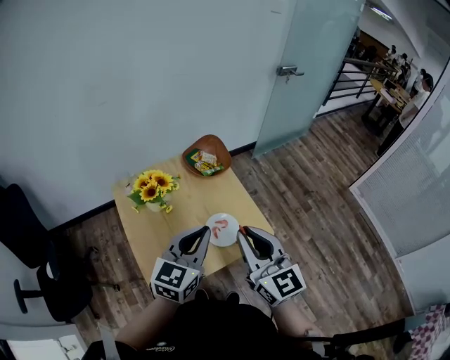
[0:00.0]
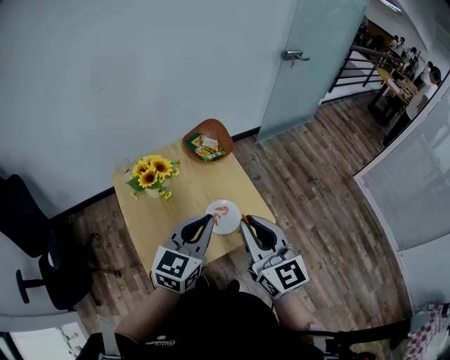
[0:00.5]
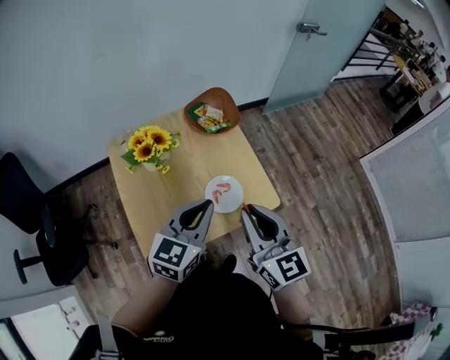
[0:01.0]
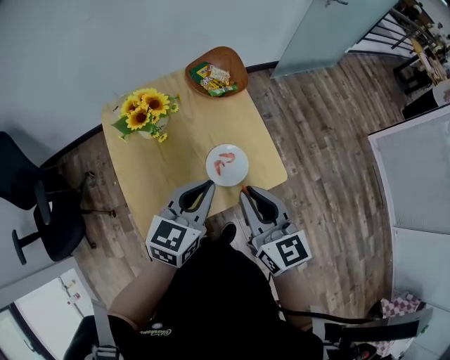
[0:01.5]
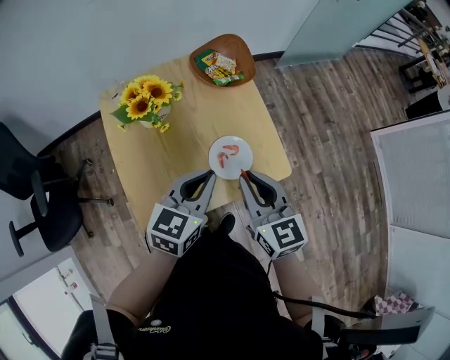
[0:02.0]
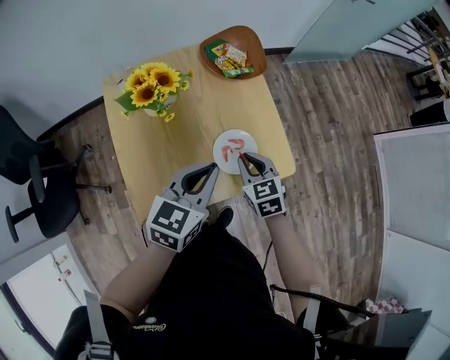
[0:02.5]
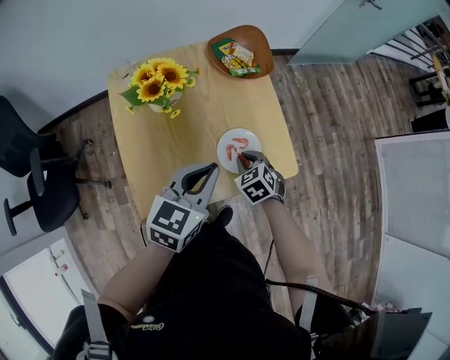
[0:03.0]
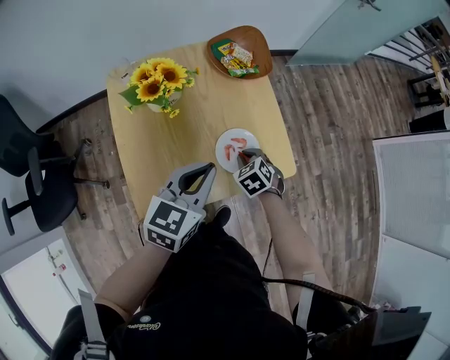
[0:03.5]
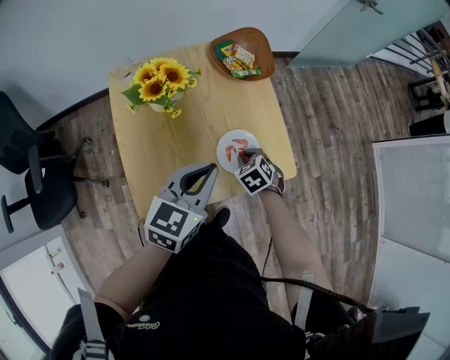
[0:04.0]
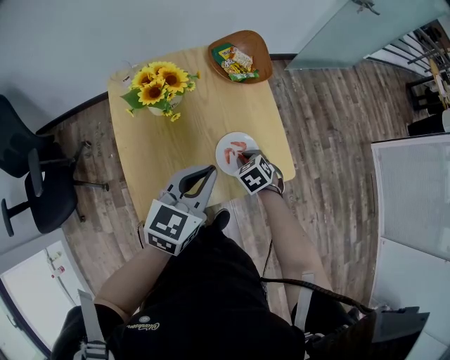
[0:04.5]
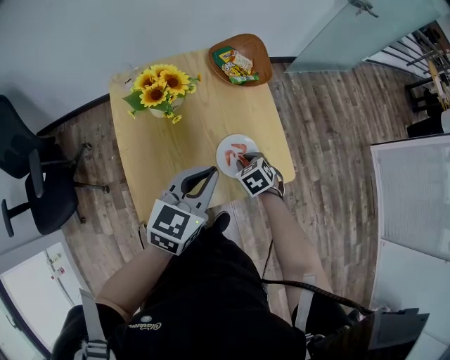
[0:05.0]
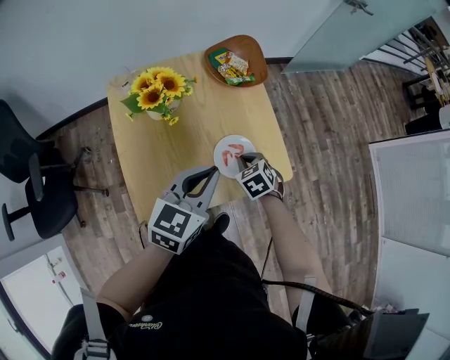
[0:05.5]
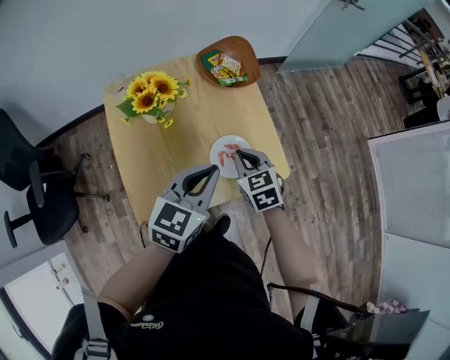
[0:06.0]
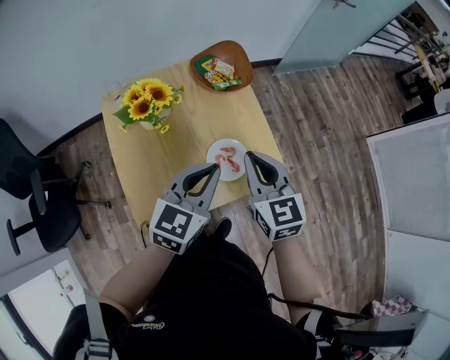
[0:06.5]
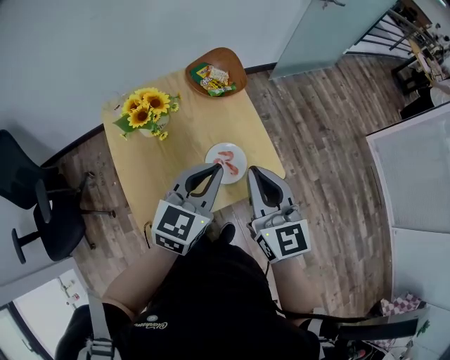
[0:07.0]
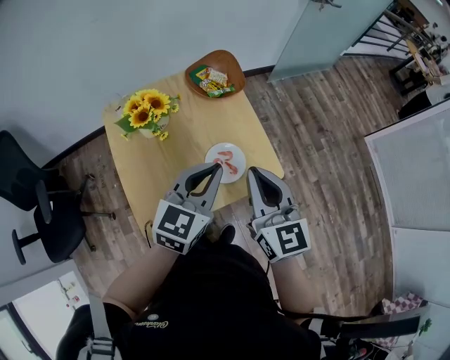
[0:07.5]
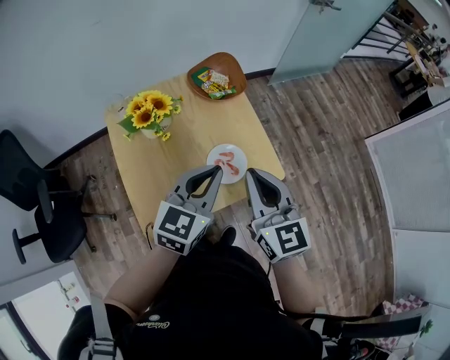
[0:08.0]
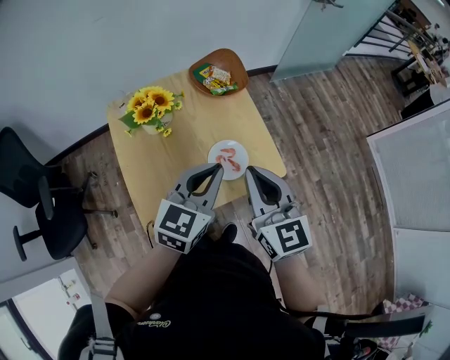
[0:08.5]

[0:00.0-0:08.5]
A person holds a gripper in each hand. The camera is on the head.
0.0 to 2.0 s: Both grippers travel together downward, approximately 15 cm. The right gripper swivels approximately 20 degrees.
2.0 to 4.0 s: The right gripper travels downward by roughly 25 cm, and points its fingers about 50 degrees further downward.
4.0 to 6.5 s: The right gripper goes some 25 cm upward, and tips its fingers upward by some 40 degrees. The left gripper moves some 5 cm.
6.5 to 8.5 s: The right gripper goes some 10 cm backward and upward.

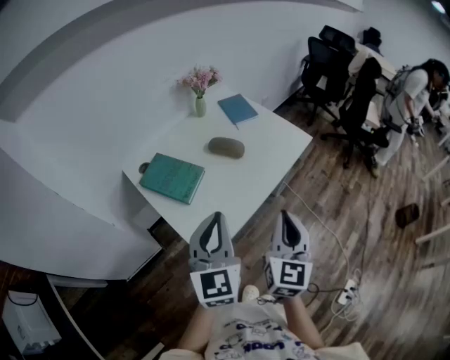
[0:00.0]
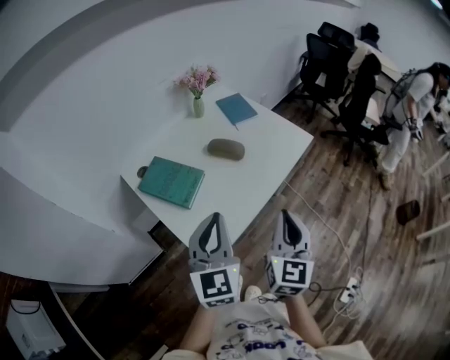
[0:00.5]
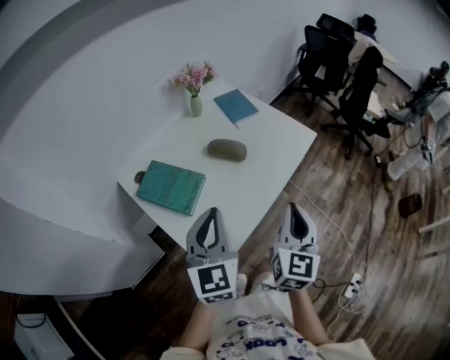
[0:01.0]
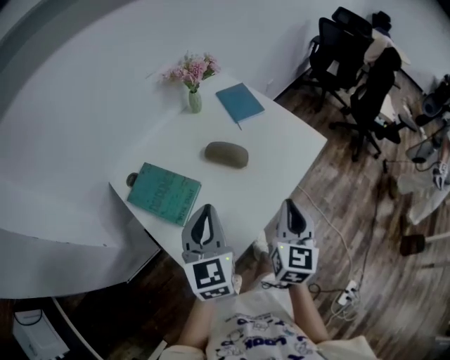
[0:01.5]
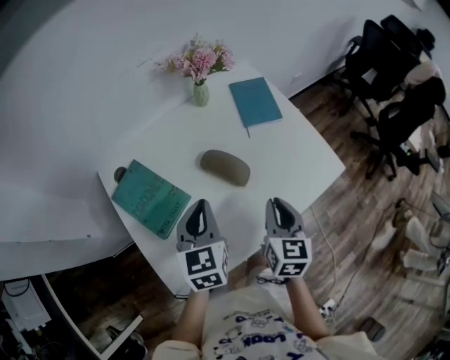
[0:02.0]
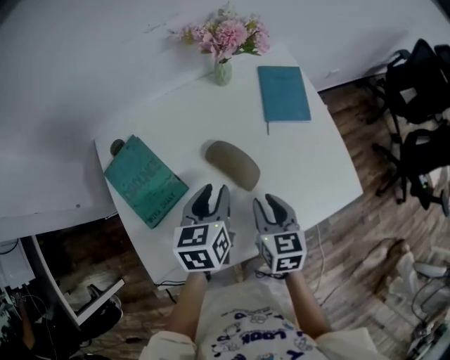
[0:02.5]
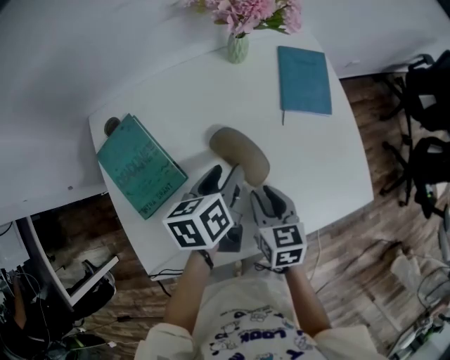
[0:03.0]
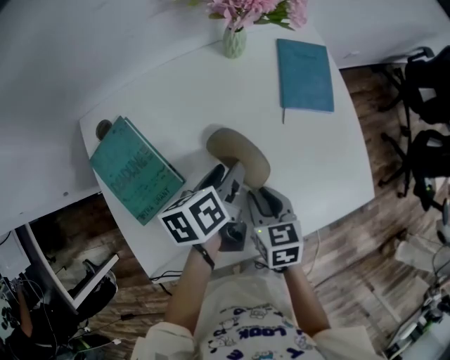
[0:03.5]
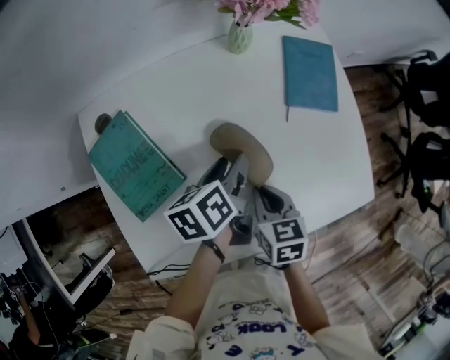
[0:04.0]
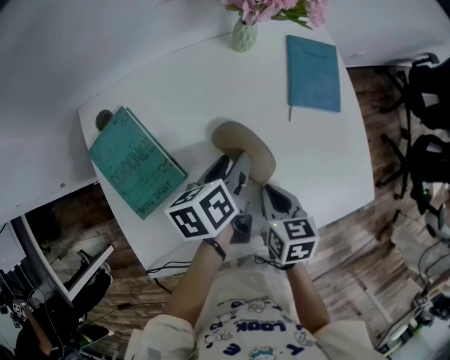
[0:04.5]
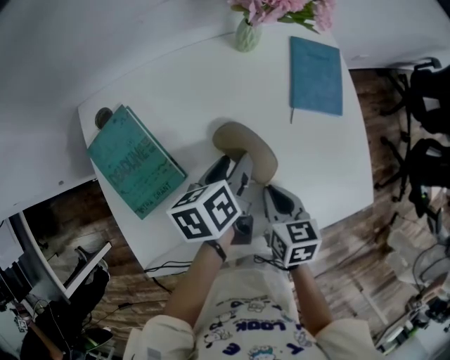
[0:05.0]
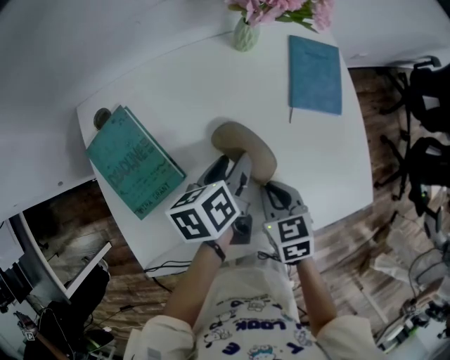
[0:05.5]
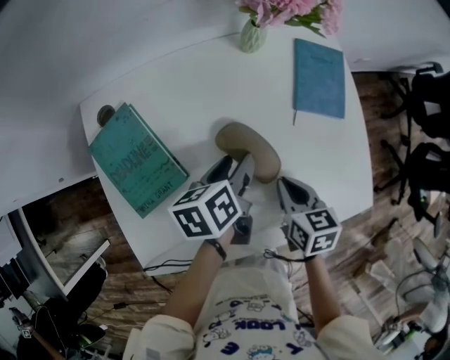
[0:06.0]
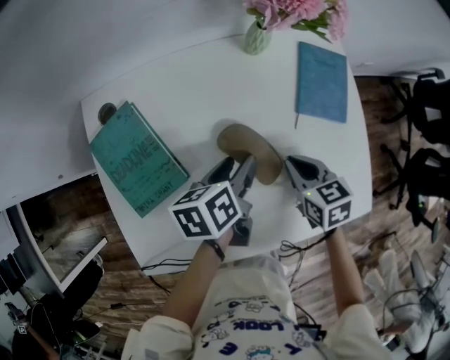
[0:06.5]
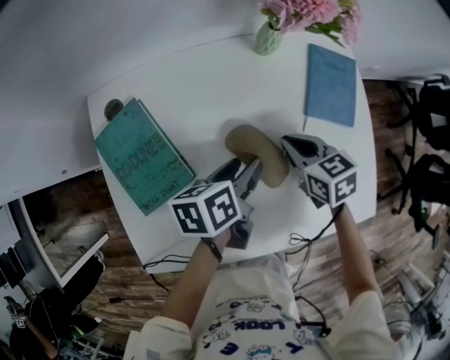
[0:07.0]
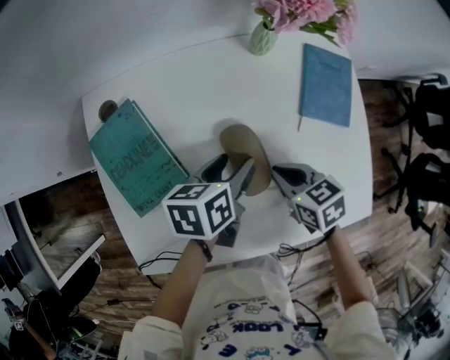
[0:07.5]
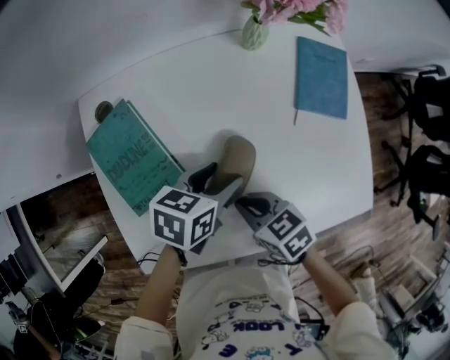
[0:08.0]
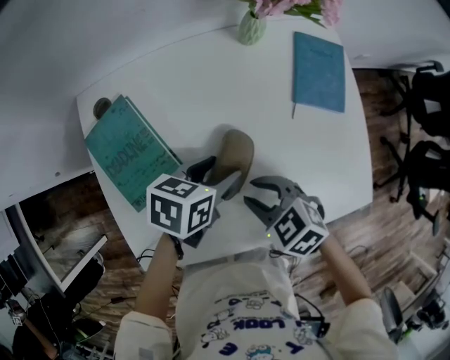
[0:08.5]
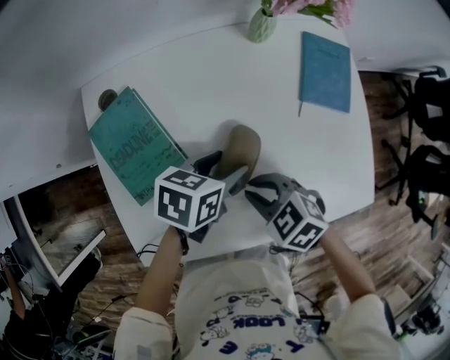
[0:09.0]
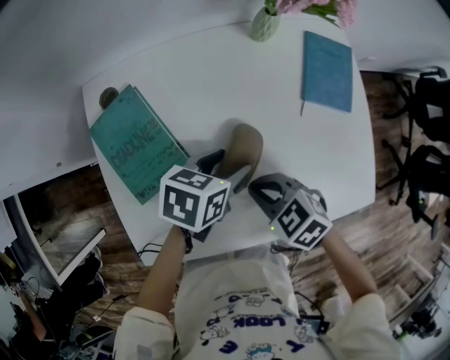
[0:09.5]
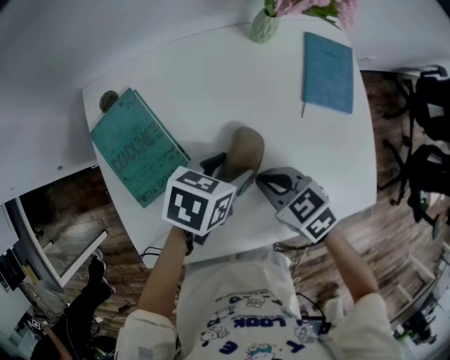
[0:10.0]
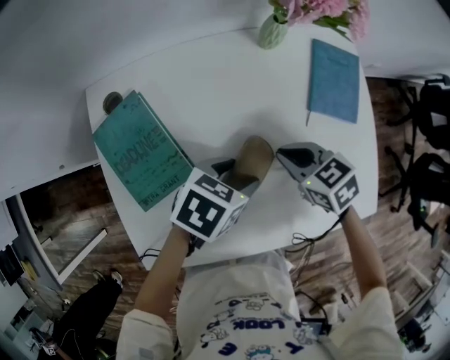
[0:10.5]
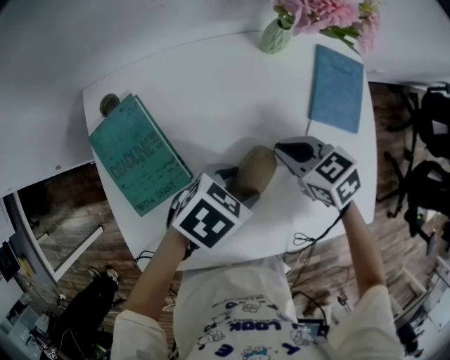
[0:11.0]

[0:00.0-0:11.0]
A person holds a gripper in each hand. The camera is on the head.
0.0 to 2.0 s: The two grippers go about 30 cm forward and downward. The left gripper changes its angle by roughly 30 degrees; the right gripper swivels roughly 30 degrees.
2.0 to 3.5 s: The right gripper shifts roughly 15 cm downward, forward and to the left, and changes its angle by some 40 degrees. Meanwhile the left gripper travels downward, forward and to the right by some 15 cm, rolls counterclockwise, seen from behind, by about 50 degrees, and opens.
3.5 to 5.5 s: The right gripper closes up.
5.5 to 7.5 s: The right gripper heads forward, covering some 5 cm, and turns by approximately 20 degrees.
7.5 to 9.0 s: The left gripper swivels approximately 20 degrees, while the right gripper changes place by approximately 10 cm, and rotates approximately 30 degrees.
9.0 to 11.0 s: The left gripper changes its angle by about 20 degrees; the right gripper ends up approximately 15 cm from where it was.

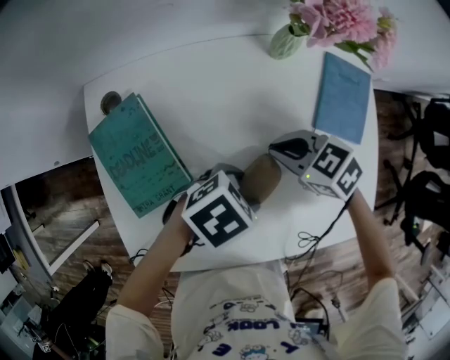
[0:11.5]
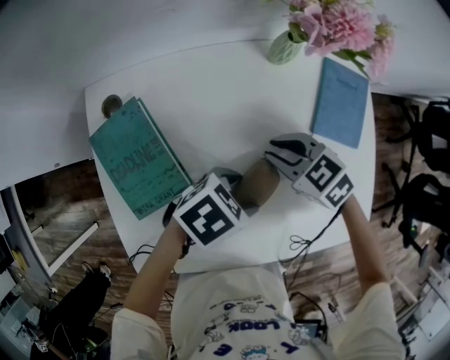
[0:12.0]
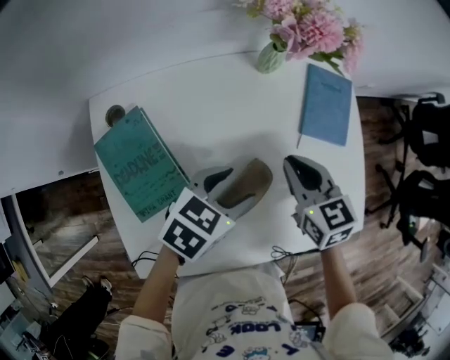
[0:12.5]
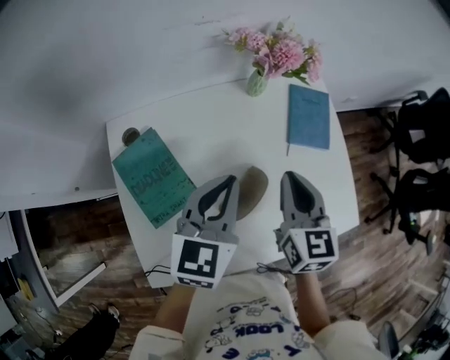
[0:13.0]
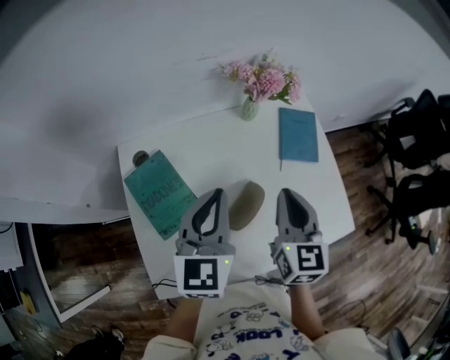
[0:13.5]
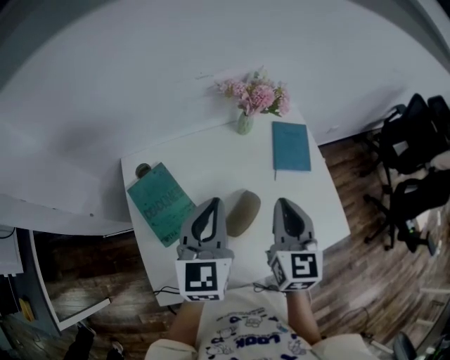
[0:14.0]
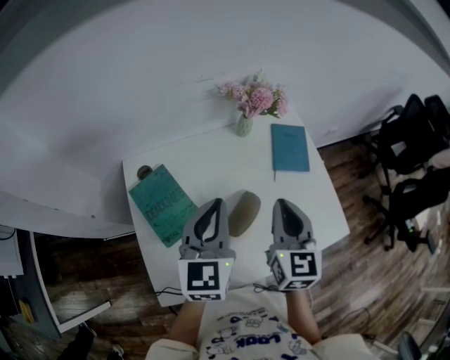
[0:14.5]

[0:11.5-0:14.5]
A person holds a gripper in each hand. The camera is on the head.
11.5 to 13.0 s: Both grippers travel together upward, roughly 15 cm. The right gripper changes its angle by about 70 degrees, while the left gripper angles its fingers upward, by some 30 degrees, and closes up.
13.0 to 14.5 s: The right gripper is displaced upward and backward by approximately 10 cm, while the left gripper heads upward, covering approximately 5 cm.

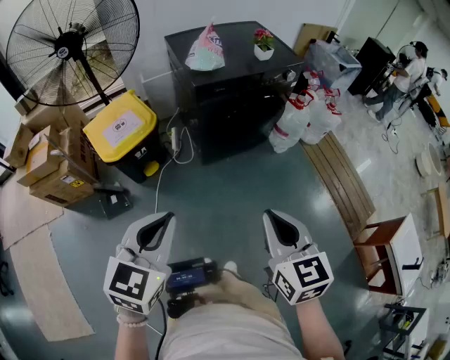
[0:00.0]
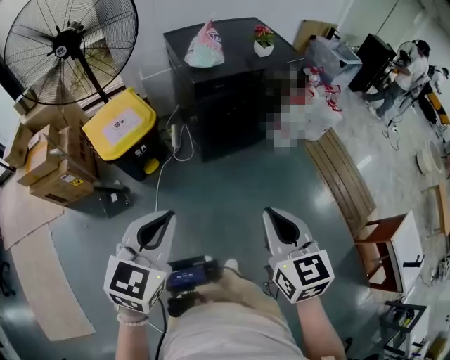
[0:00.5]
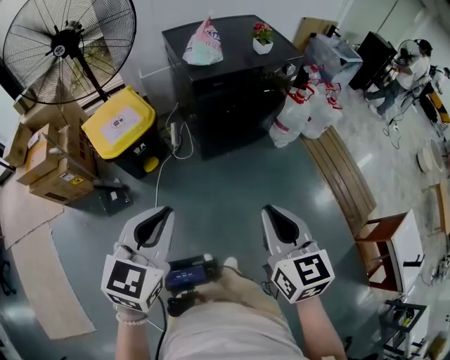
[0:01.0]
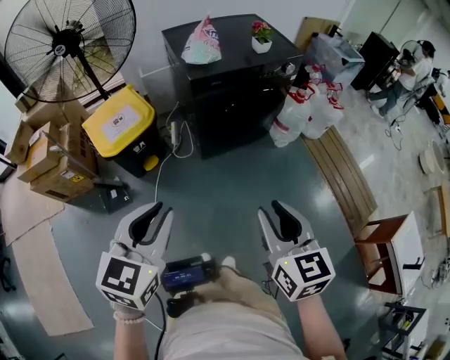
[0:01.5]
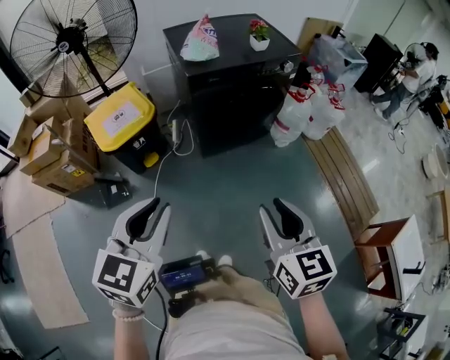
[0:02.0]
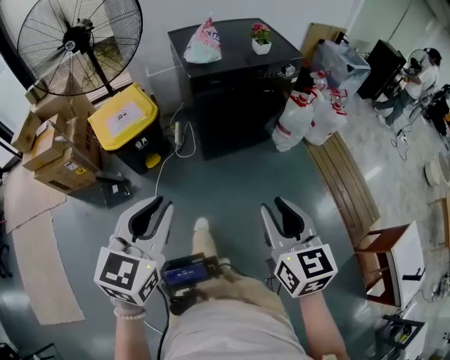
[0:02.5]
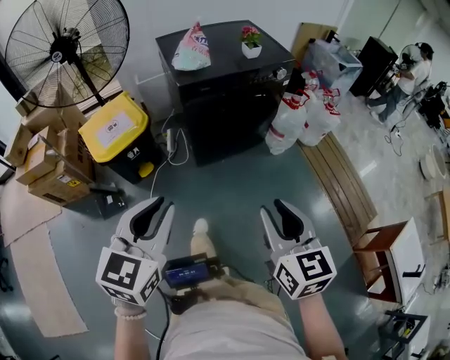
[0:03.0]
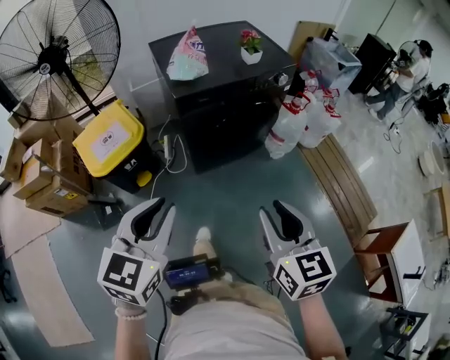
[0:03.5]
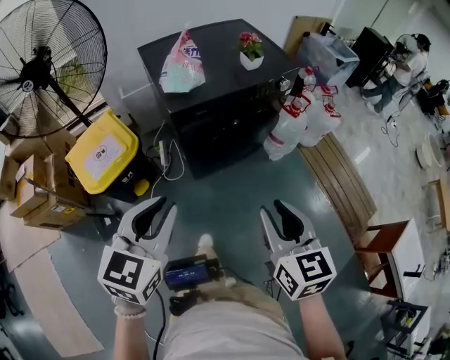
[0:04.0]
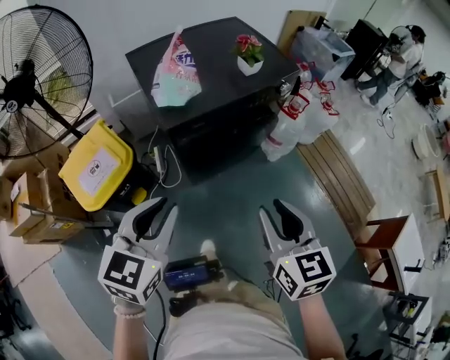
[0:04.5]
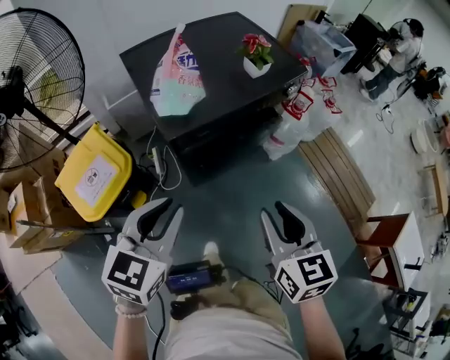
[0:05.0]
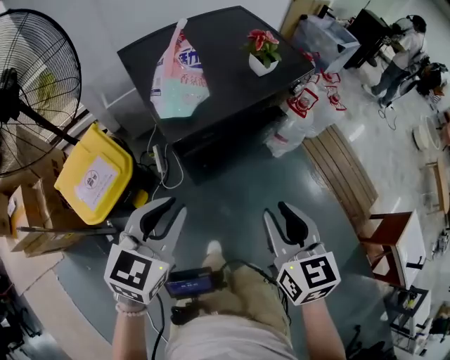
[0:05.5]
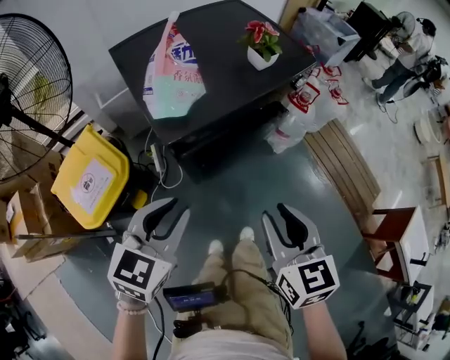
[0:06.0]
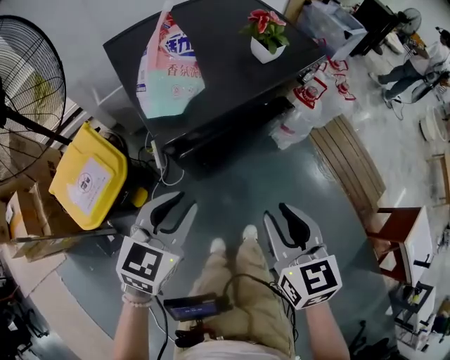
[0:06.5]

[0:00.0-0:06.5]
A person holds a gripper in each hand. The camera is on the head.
0.0 to 2.0 s: The right gripper moves to the right, roughly 5 cm, and opens its fingers.
2.0 to 4.5 s: The two grippers go about 25 cm forward.
4.5 to 6.5 s: The right gripper travels forward and downward by approximately 10 cm, while the left gripper moves downward and forward, some 15 cm.
